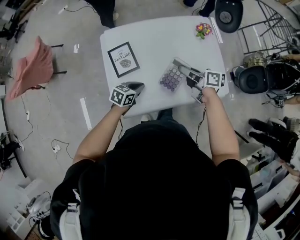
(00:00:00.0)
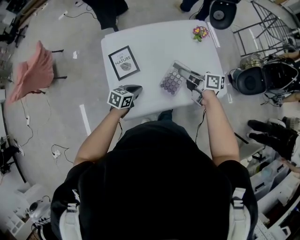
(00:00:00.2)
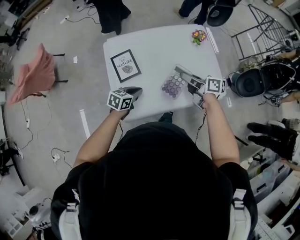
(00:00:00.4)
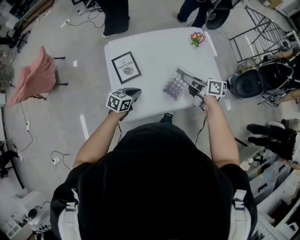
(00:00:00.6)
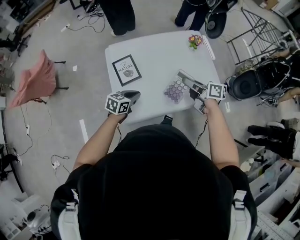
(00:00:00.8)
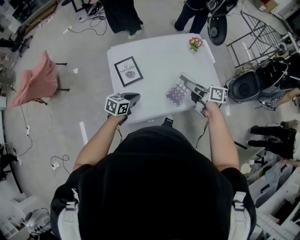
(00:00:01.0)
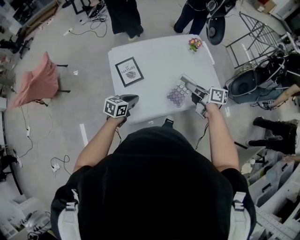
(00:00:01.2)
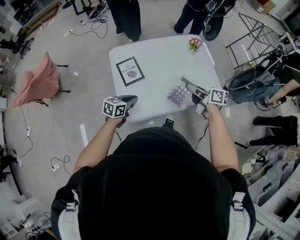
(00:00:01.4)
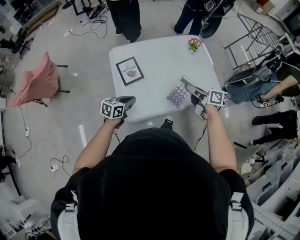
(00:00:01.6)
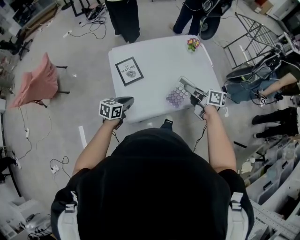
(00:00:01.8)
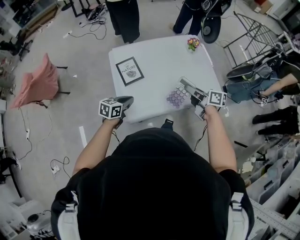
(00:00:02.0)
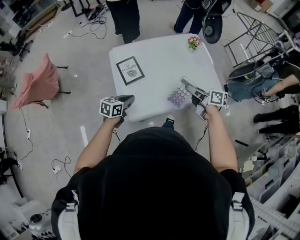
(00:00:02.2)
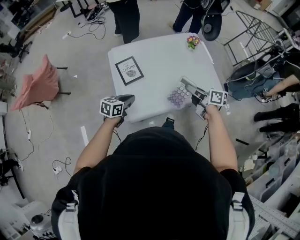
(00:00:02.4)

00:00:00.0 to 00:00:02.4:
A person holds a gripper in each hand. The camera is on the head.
00:00:00.0 to 00:00:01.2: The left gripper heads upward, backward and to the left, covering roughly 10 cm. Meanwhile the right gripper moves backward and upward, some 15 cm.
00:00:01.2 to 00:00:02.4: The grippers make only small movements.

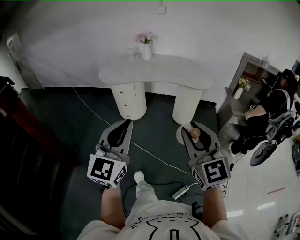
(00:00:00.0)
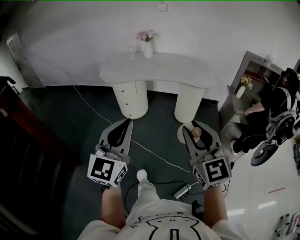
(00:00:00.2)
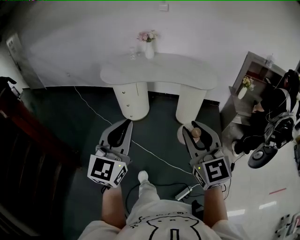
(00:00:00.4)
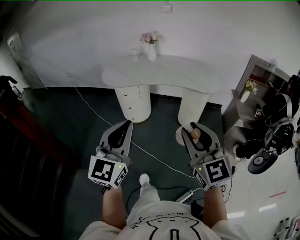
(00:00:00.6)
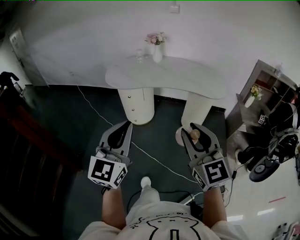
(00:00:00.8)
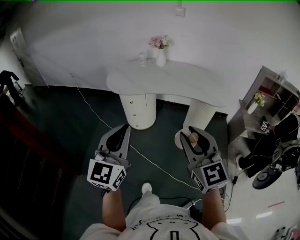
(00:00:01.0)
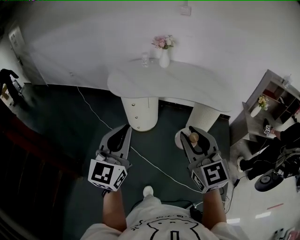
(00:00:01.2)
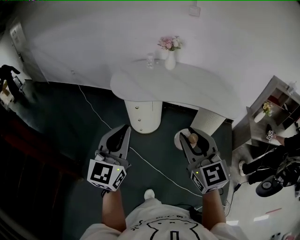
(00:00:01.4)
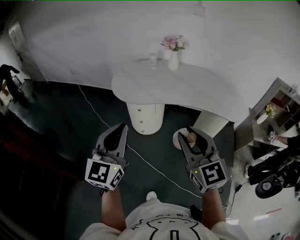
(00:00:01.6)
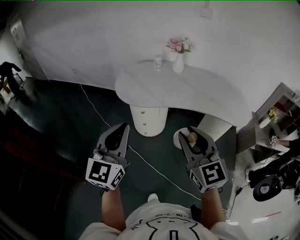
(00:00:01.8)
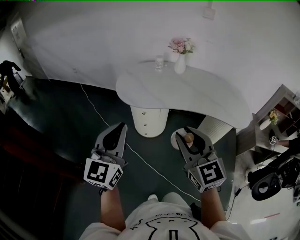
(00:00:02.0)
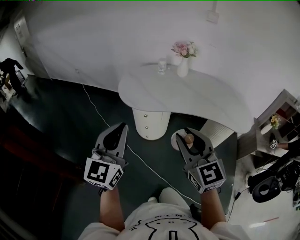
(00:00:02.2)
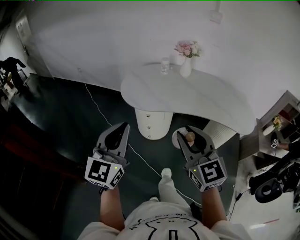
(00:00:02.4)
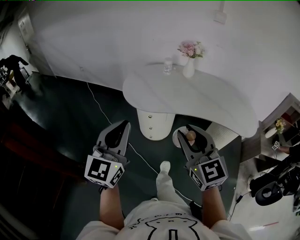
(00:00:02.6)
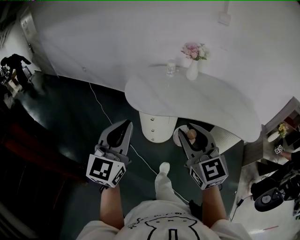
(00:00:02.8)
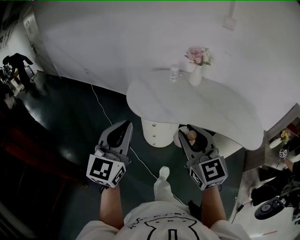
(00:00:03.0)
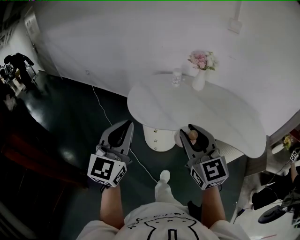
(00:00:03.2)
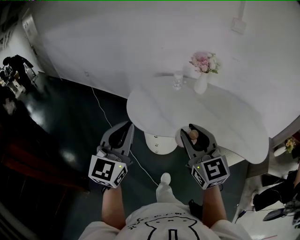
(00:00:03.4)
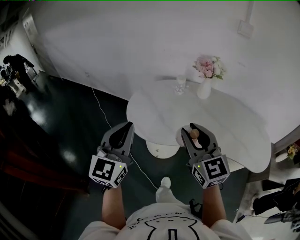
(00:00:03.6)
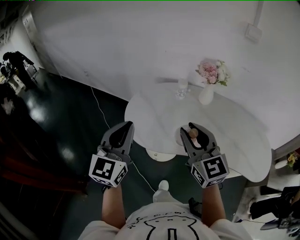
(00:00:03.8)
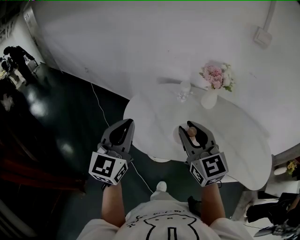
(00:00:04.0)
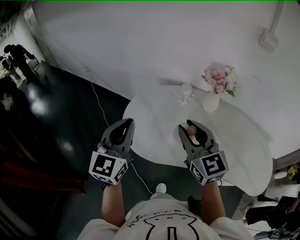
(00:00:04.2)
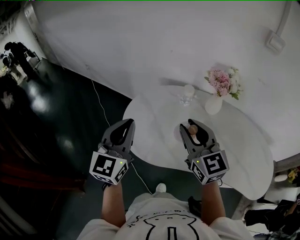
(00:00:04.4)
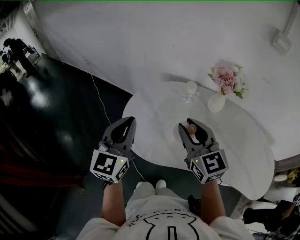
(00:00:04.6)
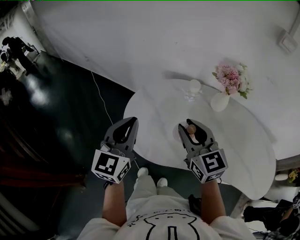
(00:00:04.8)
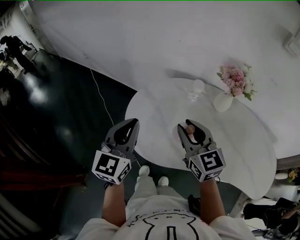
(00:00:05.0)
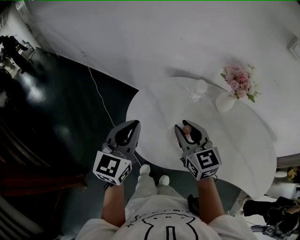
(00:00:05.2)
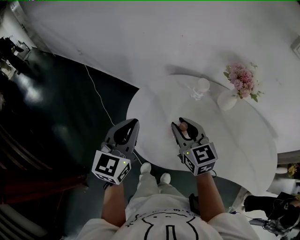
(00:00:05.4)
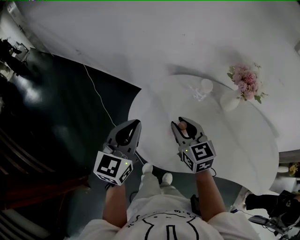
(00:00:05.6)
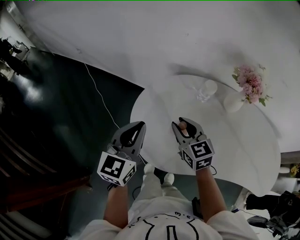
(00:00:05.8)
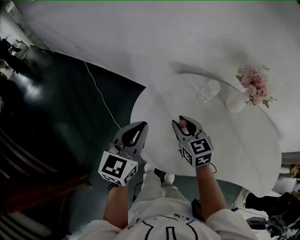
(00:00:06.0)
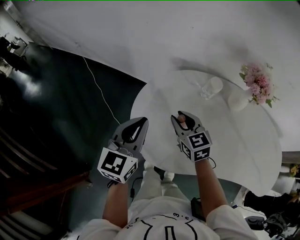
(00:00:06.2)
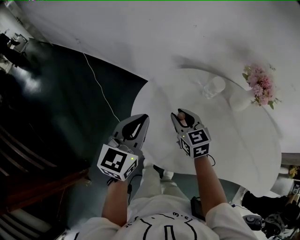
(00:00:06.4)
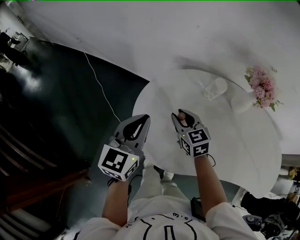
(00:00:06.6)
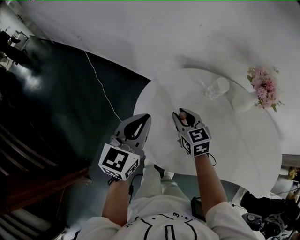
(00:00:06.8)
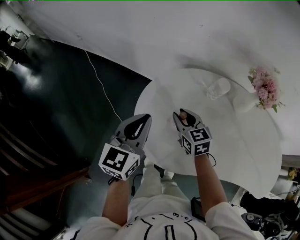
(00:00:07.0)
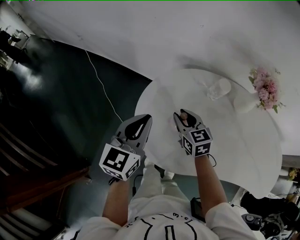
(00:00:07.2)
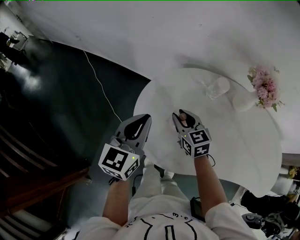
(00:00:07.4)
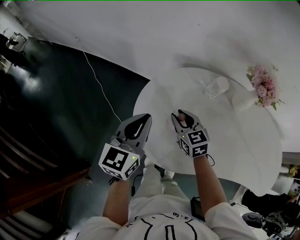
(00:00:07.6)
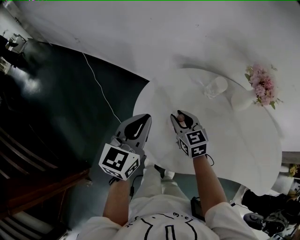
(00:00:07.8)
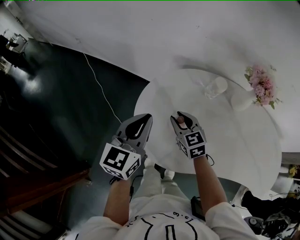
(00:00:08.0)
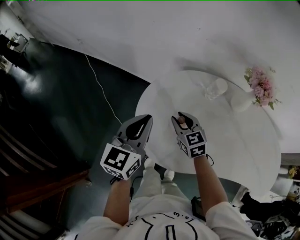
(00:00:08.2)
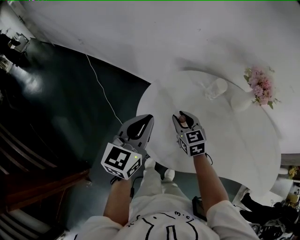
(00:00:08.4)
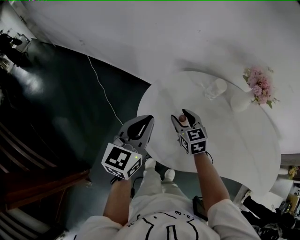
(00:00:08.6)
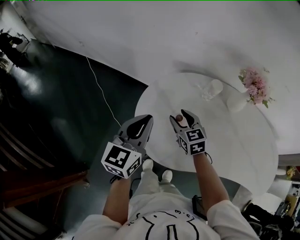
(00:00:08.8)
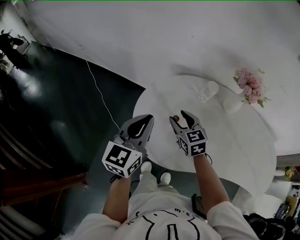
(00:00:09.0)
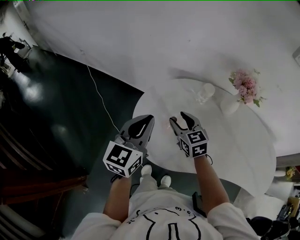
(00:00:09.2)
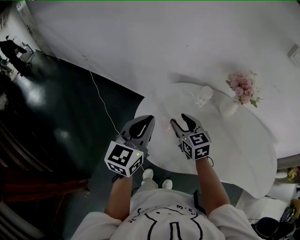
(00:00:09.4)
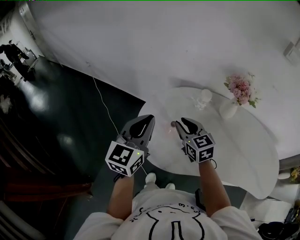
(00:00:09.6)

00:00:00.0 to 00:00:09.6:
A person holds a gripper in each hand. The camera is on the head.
00:00:00.0 to 00:00:01.6: Both grippers move forward and to the left, some 40 cm.
00:00:01.6 to 00:00:03.2: The grippers both shift forward by approximately 20 cm.
00:00:03.2 to 00:00:04.8: The two grippers go about 35 cm forward.
00:00:04.8 to 00:00:06.4: The left gripper travels forward and downward by approximately 15 cm; the right gripper shifts some 25 cm downward, forward and to the left.
00:00:06.4 to 00:00:08.0: There are only small adjustments of the grippers.
00:00:08.0 to 00:00:09.6: The two grippers go some 15 cm upward and backward. The right gripper opens, then closes once more.

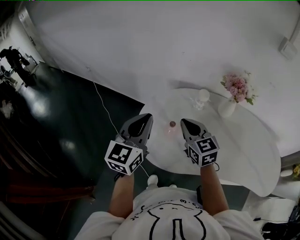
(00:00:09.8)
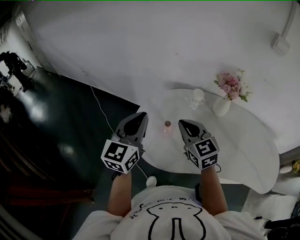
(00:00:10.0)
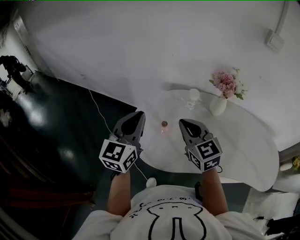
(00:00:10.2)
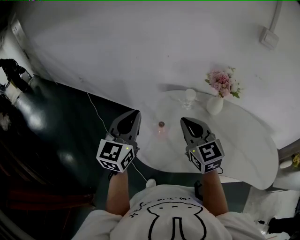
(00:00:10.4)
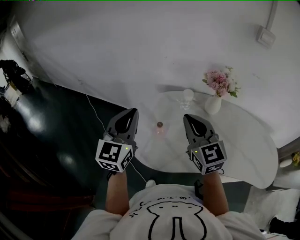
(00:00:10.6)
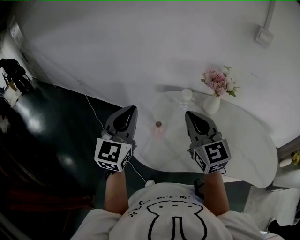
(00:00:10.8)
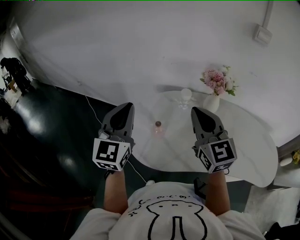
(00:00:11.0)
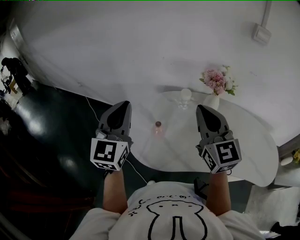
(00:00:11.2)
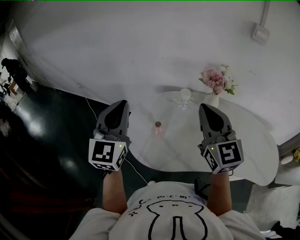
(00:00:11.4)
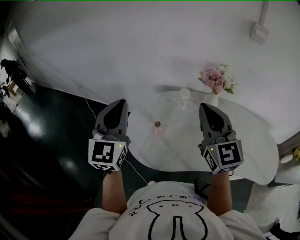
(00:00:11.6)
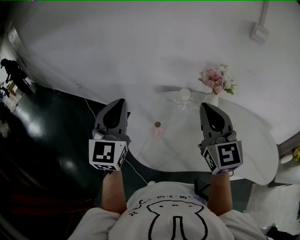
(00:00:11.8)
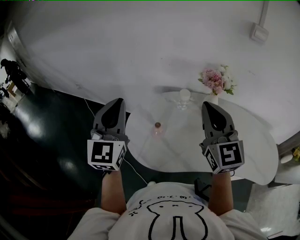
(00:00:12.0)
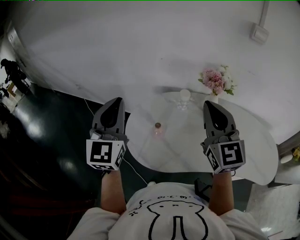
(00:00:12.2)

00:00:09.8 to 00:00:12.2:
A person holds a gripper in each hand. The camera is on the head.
00:00:09.8 to 00:00:11.0: The right gripper shifts approximately 20 cm upward and to the right, and turns by some 20 degrees, while the left gripper moves upward, approximately 10 cm.
00:00:11.0 to 00:00:12.2: The right gripper ends up about 5 cm from where it was.

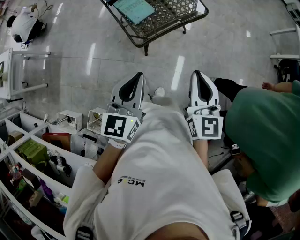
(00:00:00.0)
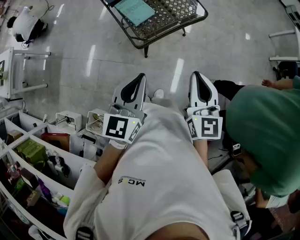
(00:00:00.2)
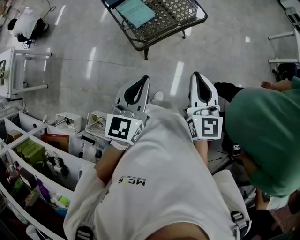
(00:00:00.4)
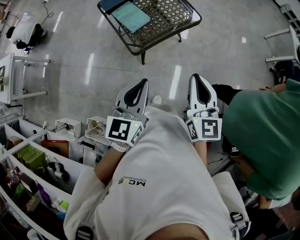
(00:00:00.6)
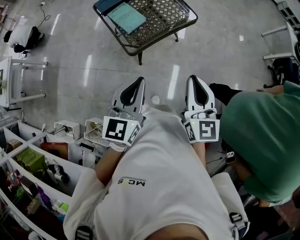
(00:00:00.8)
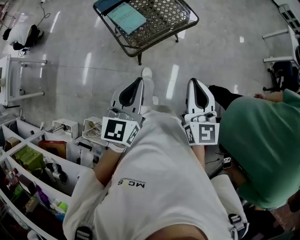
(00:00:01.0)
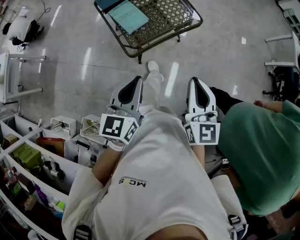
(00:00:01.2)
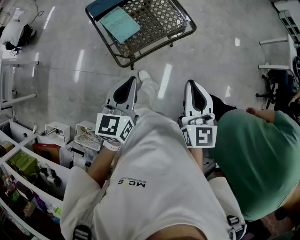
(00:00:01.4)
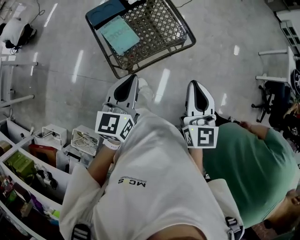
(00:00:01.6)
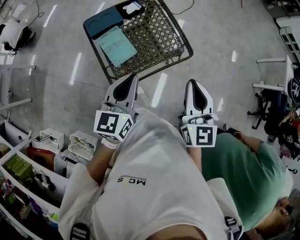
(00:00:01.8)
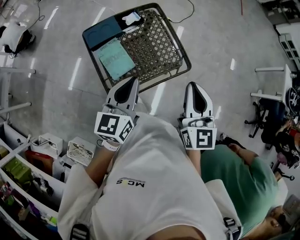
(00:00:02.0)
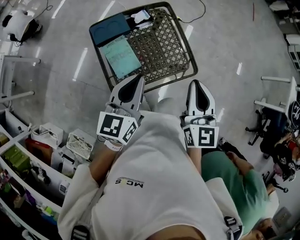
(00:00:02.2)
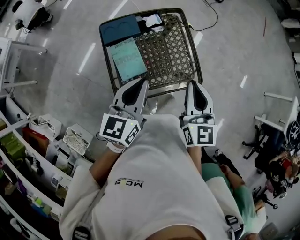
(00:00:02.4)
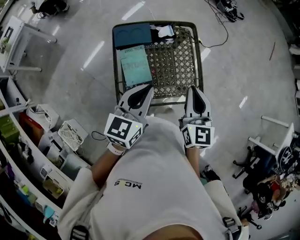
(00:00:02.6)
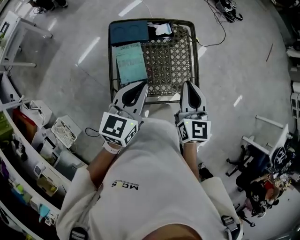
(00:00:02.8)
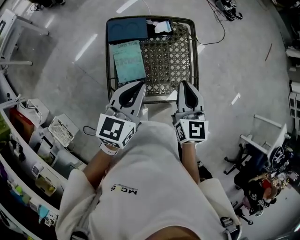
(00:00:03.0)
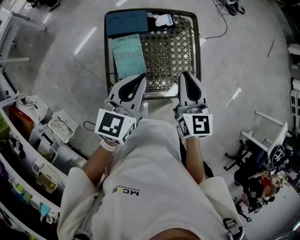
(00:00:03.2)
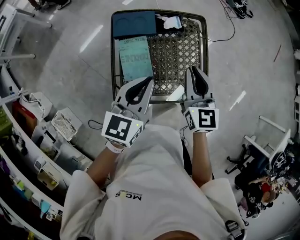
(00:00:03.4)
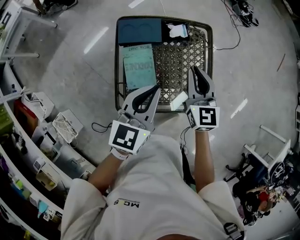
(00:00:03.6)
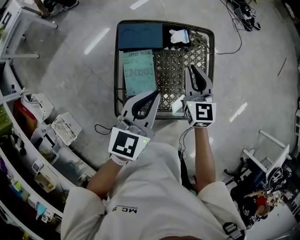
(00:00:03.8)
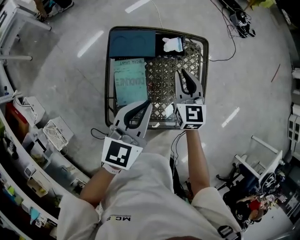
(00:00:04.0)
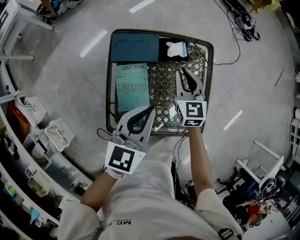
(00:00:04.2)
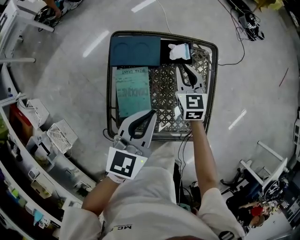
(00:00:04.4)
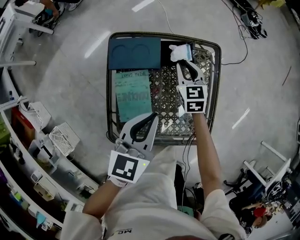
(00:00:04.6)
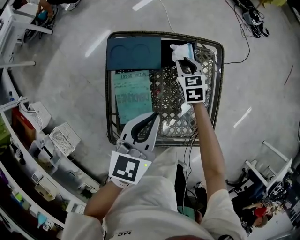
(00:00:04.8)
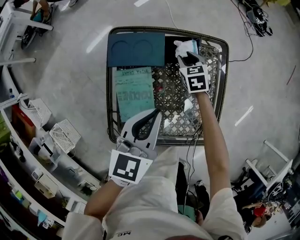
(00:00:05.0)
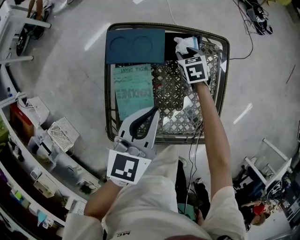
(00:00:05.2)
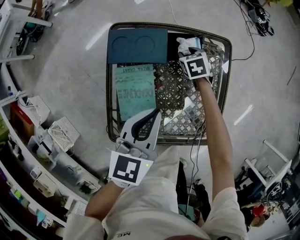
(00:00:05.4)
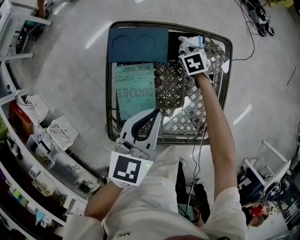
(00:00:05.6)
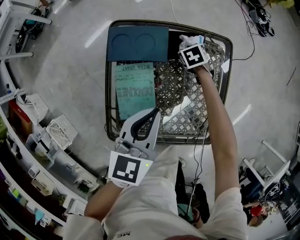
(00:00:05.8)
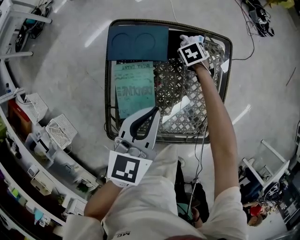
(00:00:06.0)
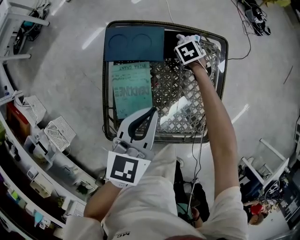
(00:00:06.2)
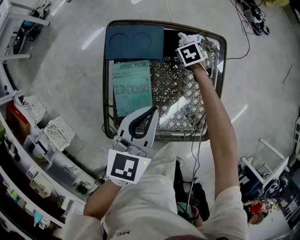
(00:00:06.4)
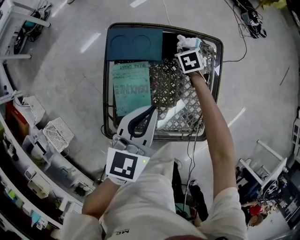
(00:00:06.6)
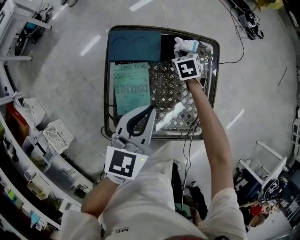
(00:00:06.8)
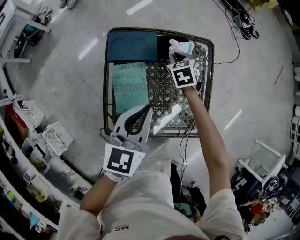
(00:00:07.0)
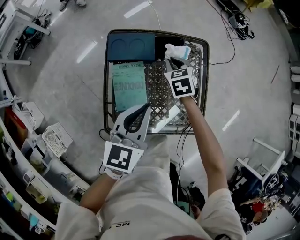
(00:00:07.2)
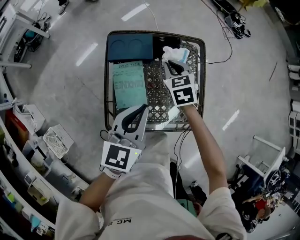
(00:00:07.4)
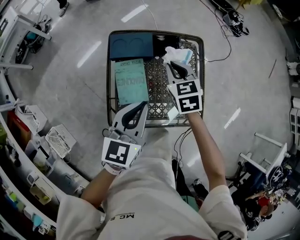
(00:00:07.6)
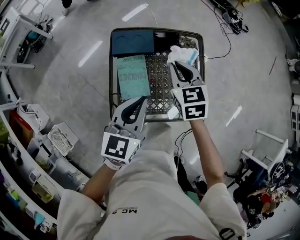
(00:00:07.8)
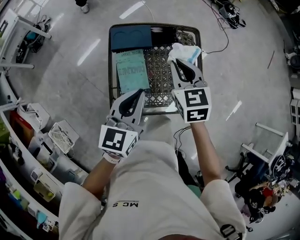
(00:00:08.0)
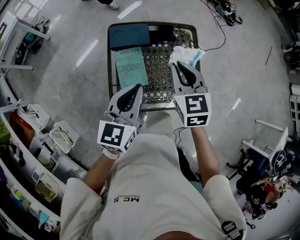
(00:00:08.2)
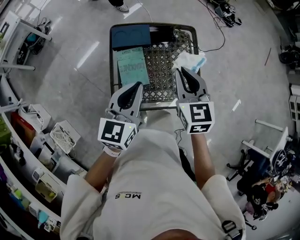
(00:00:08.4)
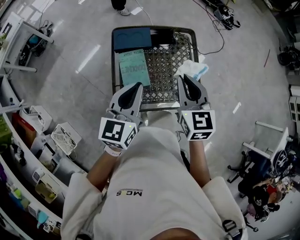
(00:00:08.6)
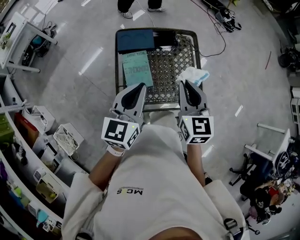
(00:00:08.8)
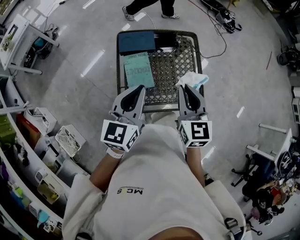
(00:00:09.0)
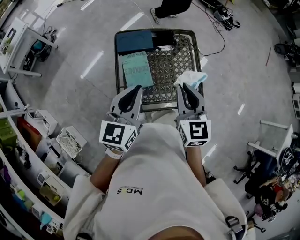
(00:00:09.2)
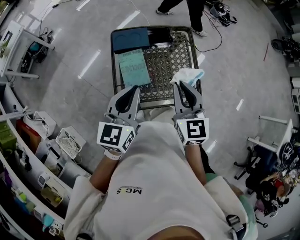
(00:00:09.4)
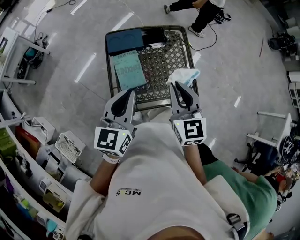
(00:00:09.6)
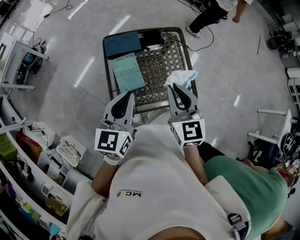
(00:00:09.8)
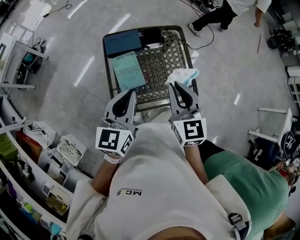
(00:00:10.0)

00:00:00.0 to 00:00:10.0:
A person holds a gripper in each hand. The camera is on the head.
00:00:00.0 to 00:00:01.4: Both grippers travel together forward, about 10 cm.
00:00:01.4 to 00:00:02.8: Both grippers travel together forward, about 35 cm. The right gripper swivels some 20 degrees.
00:00:02.8 to 00:00:04.2: The right gripper is displaced forward and downward by some 30 cm; the left gripper goes some 15 cm forward and downward.
00:00:04.2 to 00:00:05.8: The left gripper heads downward, covering some 10 cm; the right gripper travels downward and forward by some 30 cm, and points its fingers about 50 degrees further downward.
00:00:05.8 to 00:00:07.2: The left gripper shifts approximately 5 cm upward, while the right gripper heads upward, covering approximately 20 cm, and swivels some 20 degrees.
00:00:07.2 to 00:00:08.6: The left gripper goes approximately 10 cm upward and backward. The right gripper heads upward and backward, covering some 35 cm, and changes its angle by roughly 30 degrees.
00:00:08.6 to 00:00:10.0: The right gripper moves backward, some 5 cm.
